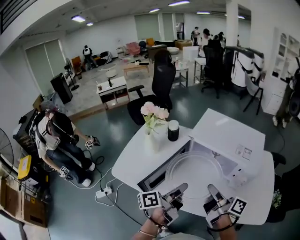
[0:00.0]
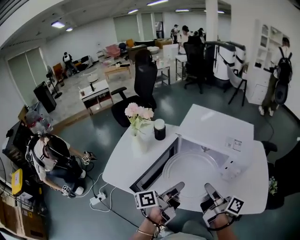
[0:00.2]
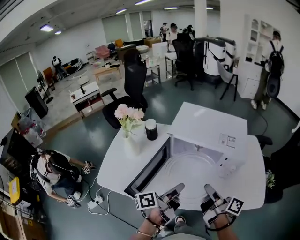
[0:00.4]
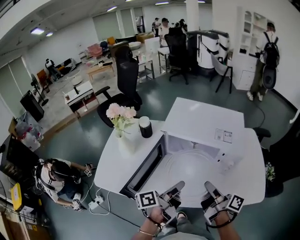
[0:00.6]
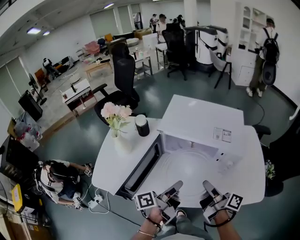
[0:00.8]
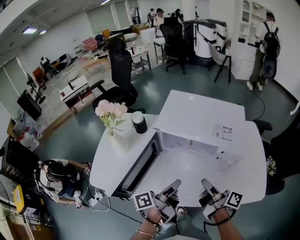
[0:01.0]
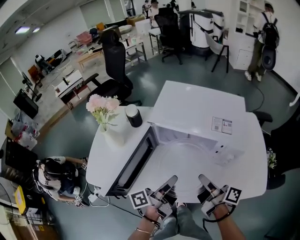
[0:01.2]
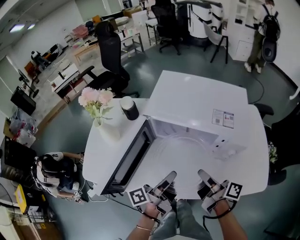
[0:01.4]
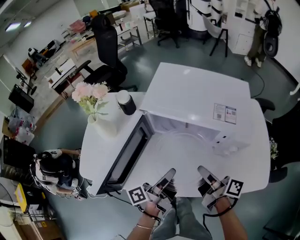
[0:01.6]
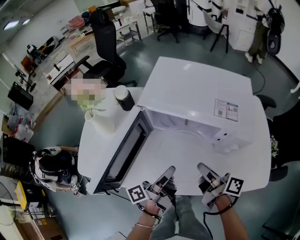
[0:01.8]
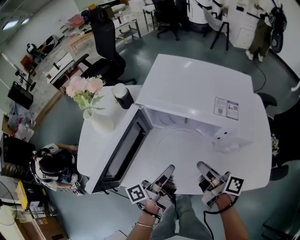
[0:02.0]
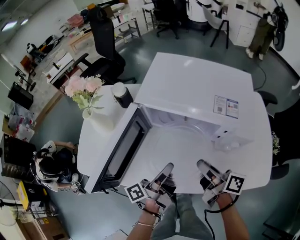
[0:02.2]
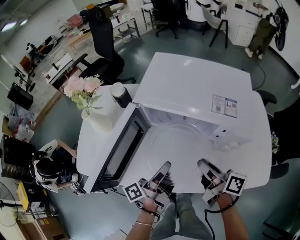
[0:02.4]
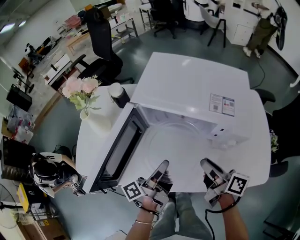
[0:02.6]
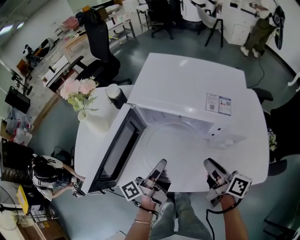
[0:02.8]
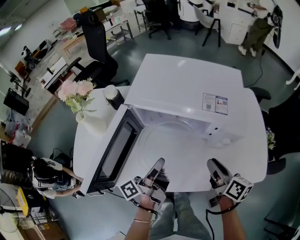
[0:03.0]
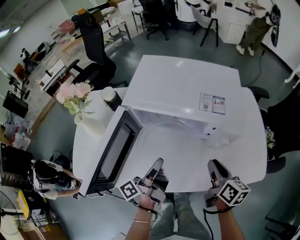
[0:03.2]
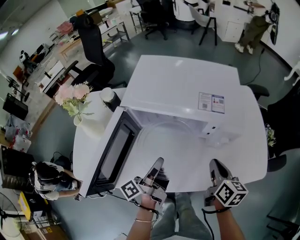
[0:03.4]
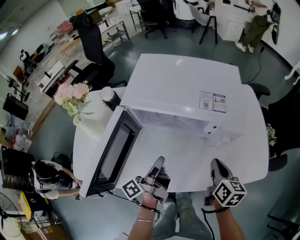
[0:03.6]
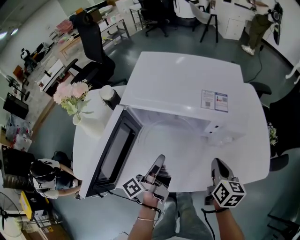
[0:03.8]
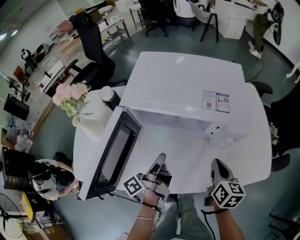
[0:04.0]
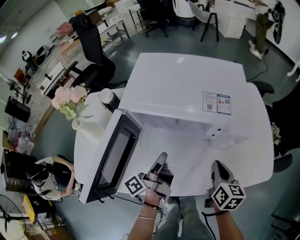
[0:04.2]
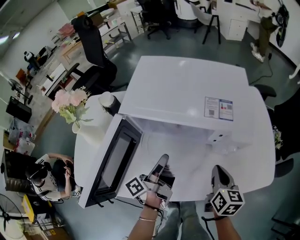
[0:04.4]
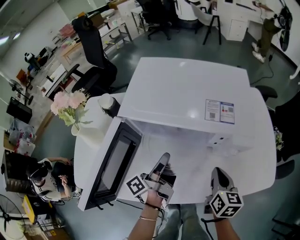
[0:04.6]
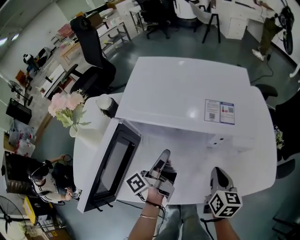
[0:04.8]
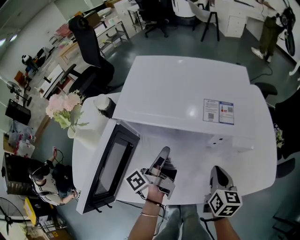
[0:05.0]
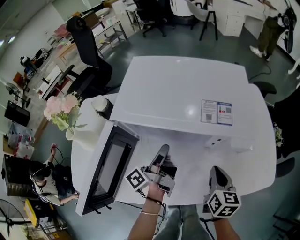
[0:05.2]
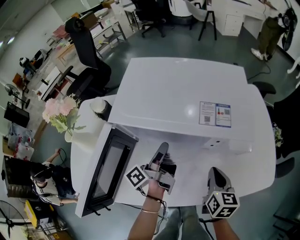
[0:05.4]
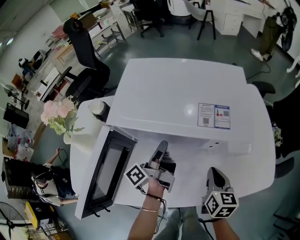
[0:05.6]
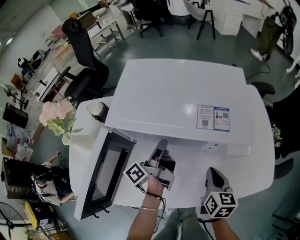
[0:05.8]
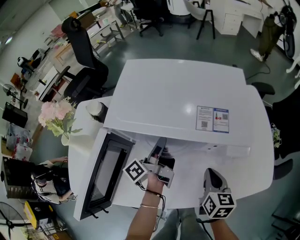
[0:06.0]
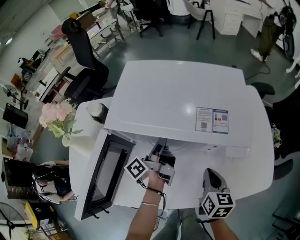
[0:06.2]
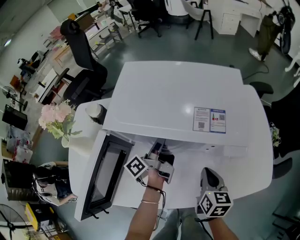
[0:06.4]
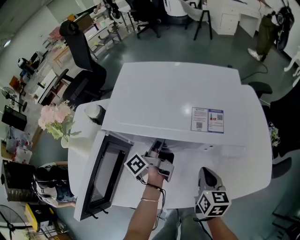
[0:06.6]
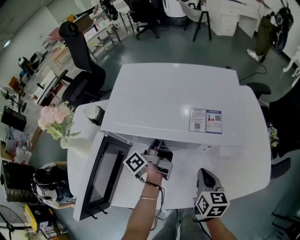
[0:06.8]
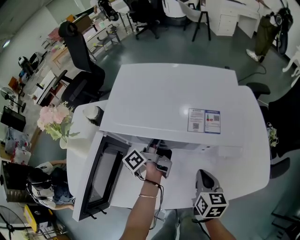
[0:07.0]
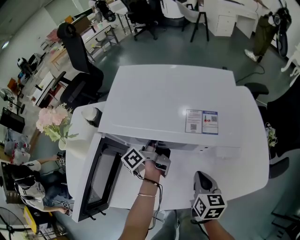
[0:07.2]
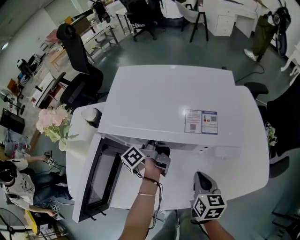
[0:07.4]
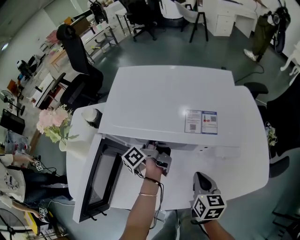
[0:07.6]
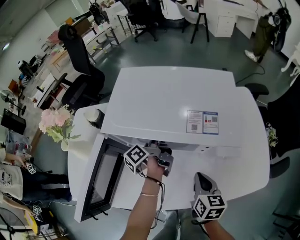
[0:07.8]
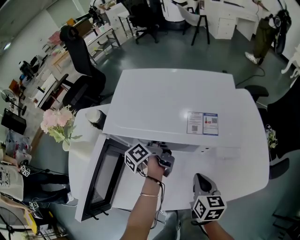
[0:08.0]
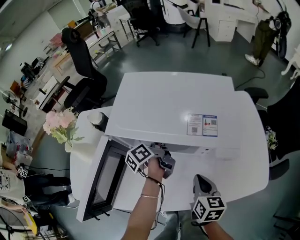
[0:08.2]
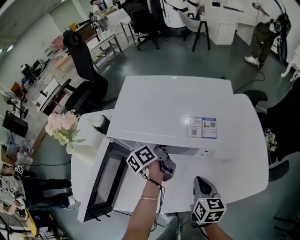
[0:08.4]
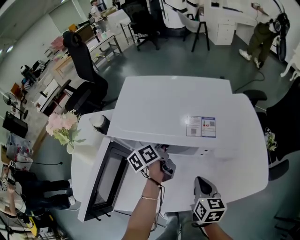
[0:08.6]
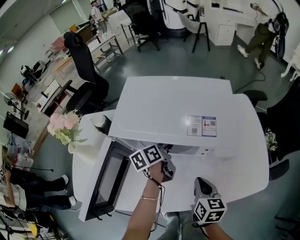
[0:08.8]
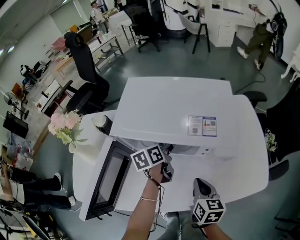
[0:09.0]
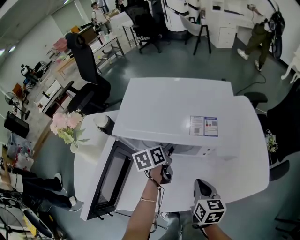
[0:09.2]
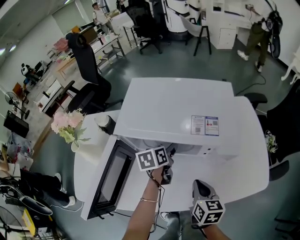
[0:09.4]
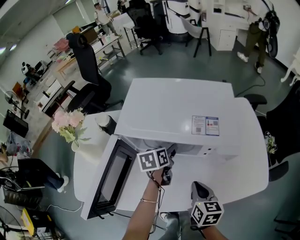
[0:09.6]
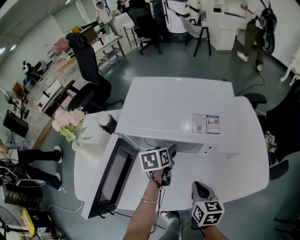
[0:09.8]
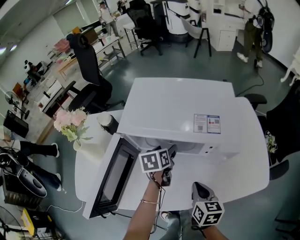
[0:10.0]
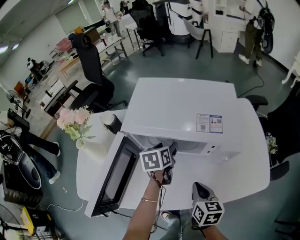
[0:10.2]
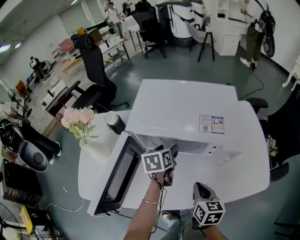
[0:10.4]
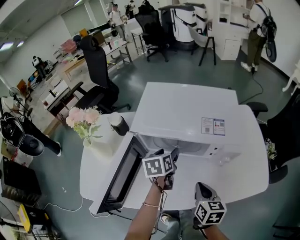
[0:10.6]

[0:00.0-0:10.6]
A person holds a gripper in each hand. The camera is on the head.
0:00.0 to 0:01.6: The right gripper travels downward by about 10 cm.
0:01.6 to 0:03.0: The right gripper ends up approximately 10 cm from where it was, and swivels roughly 30 degrees.
0:03.0 to 0:04.6: The right gripper travels downward by about 5 cm, changes its angle by some 30 degrees, and closes its fingers.

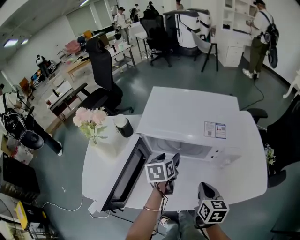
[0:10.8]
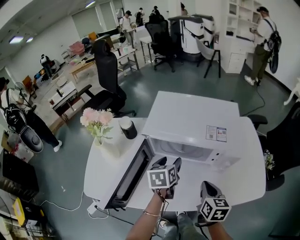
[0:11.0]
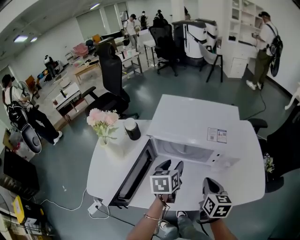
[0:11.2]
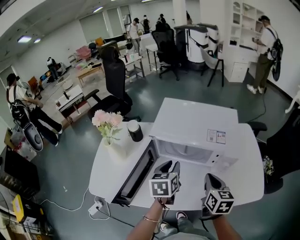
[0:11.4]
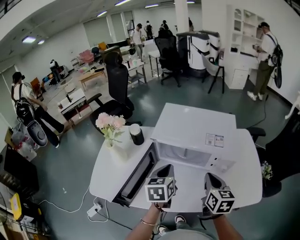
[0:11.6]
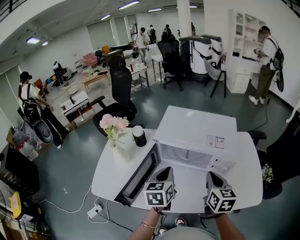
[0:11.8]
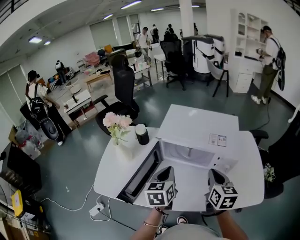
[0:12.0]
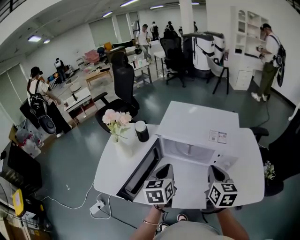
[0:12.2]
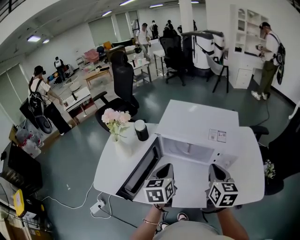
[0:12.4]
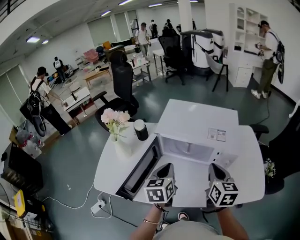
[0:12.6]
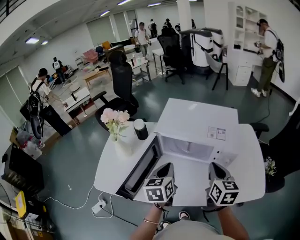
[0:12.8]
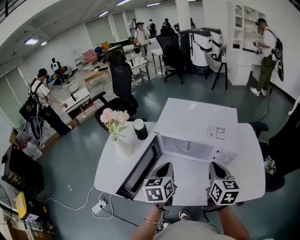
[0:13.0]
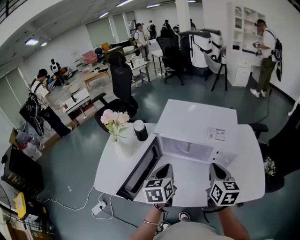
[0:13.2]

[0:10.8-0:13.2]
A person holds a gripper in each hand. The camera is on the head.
0:10.8 to 0:12.0: The right gripper travels upward by approximately 10 cm.

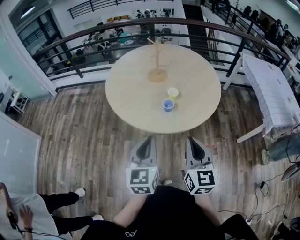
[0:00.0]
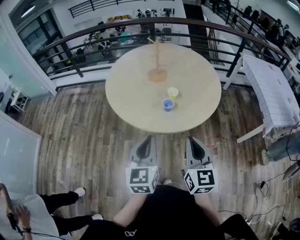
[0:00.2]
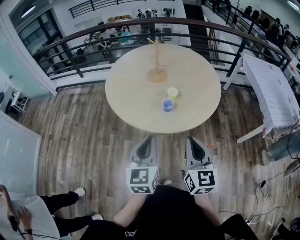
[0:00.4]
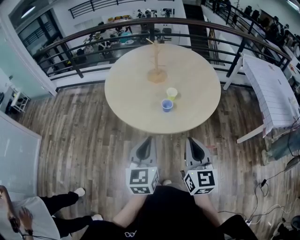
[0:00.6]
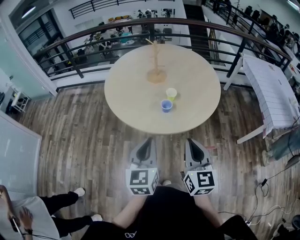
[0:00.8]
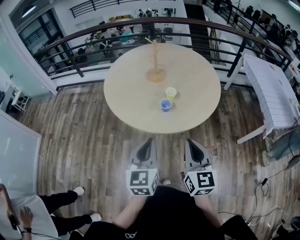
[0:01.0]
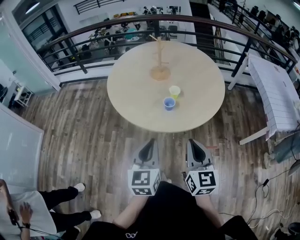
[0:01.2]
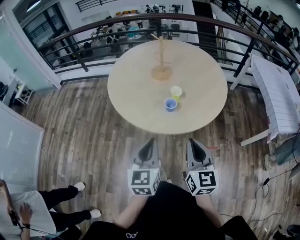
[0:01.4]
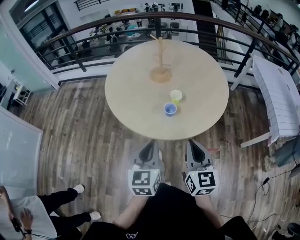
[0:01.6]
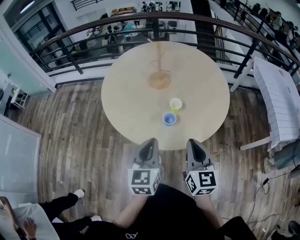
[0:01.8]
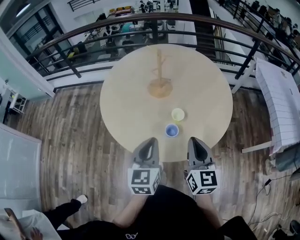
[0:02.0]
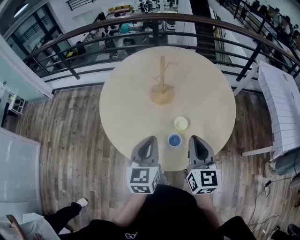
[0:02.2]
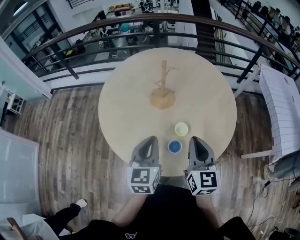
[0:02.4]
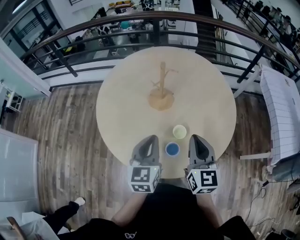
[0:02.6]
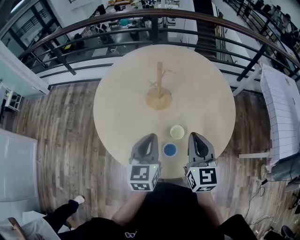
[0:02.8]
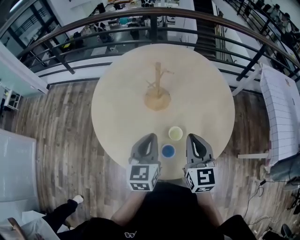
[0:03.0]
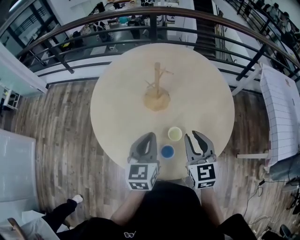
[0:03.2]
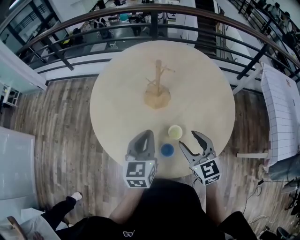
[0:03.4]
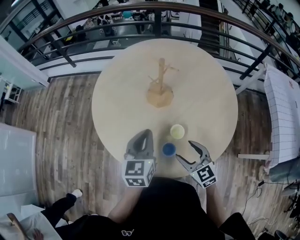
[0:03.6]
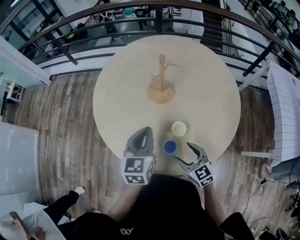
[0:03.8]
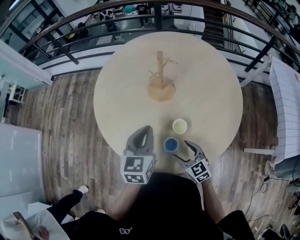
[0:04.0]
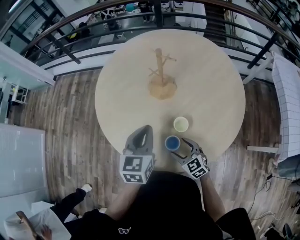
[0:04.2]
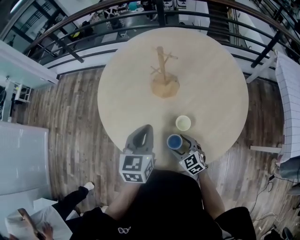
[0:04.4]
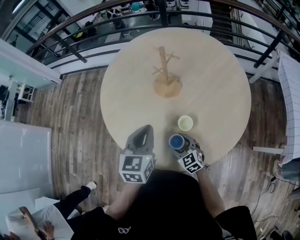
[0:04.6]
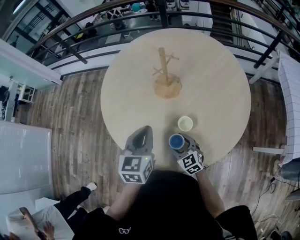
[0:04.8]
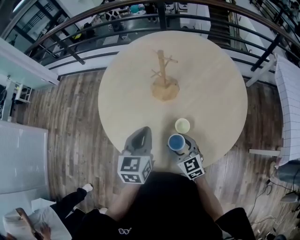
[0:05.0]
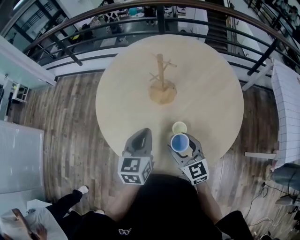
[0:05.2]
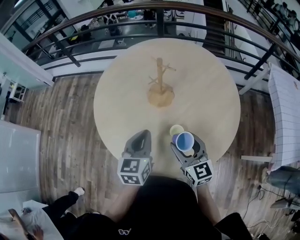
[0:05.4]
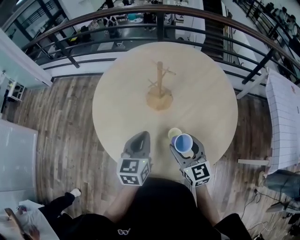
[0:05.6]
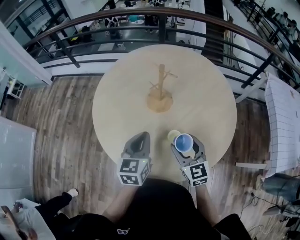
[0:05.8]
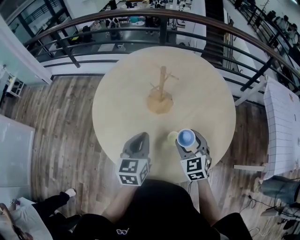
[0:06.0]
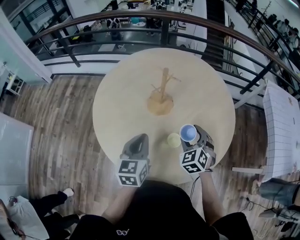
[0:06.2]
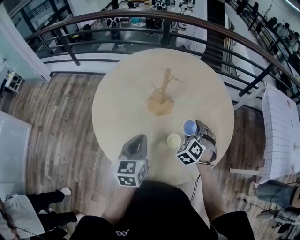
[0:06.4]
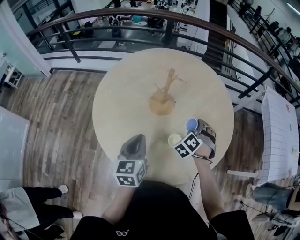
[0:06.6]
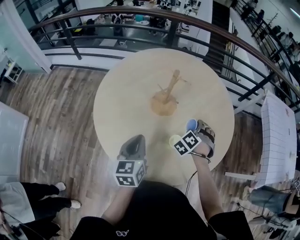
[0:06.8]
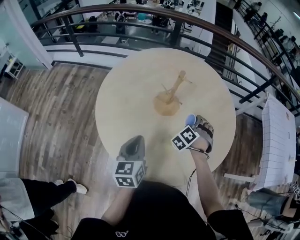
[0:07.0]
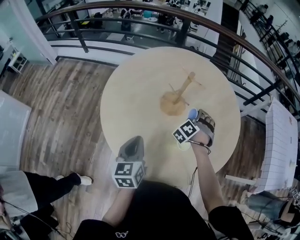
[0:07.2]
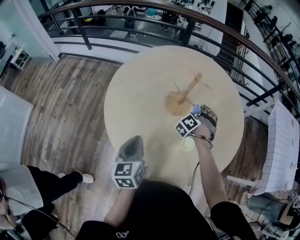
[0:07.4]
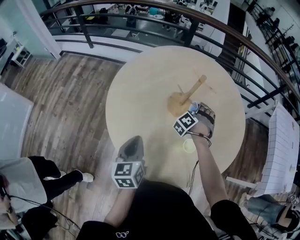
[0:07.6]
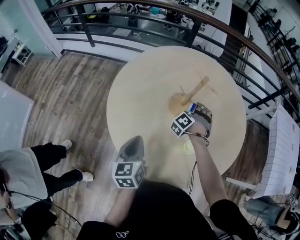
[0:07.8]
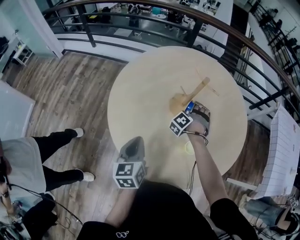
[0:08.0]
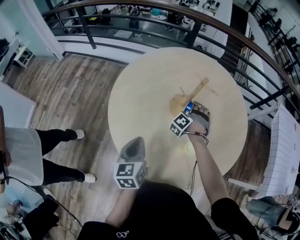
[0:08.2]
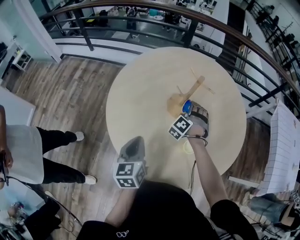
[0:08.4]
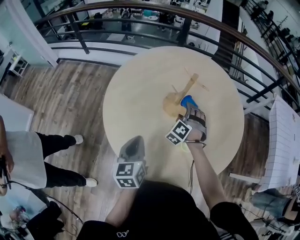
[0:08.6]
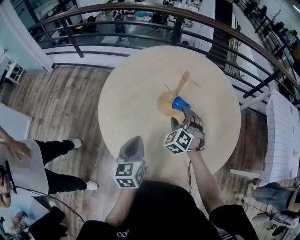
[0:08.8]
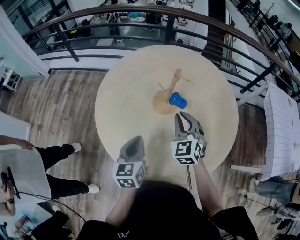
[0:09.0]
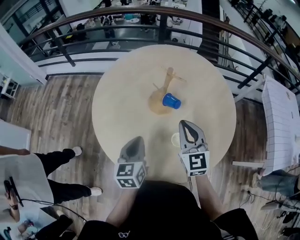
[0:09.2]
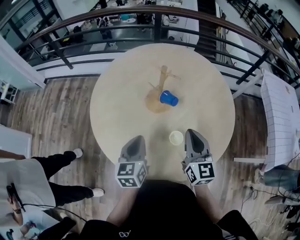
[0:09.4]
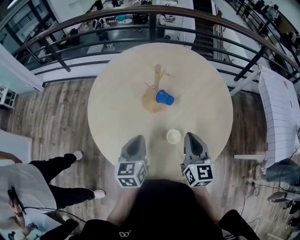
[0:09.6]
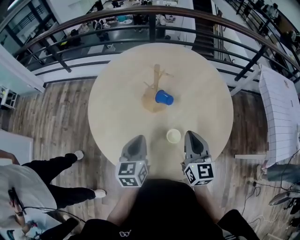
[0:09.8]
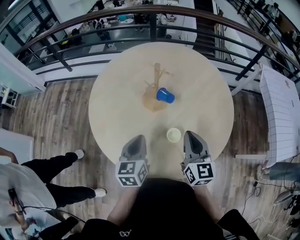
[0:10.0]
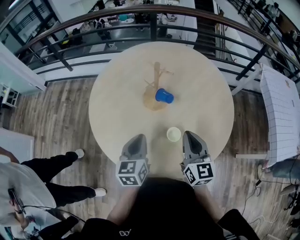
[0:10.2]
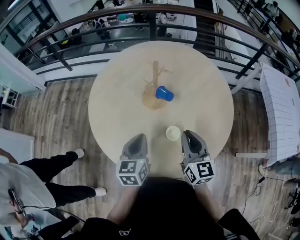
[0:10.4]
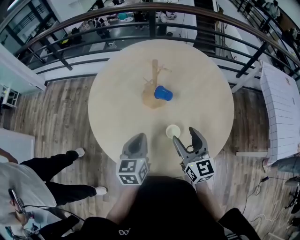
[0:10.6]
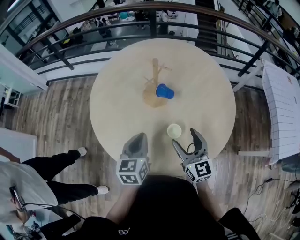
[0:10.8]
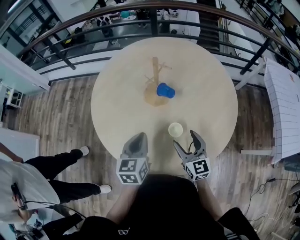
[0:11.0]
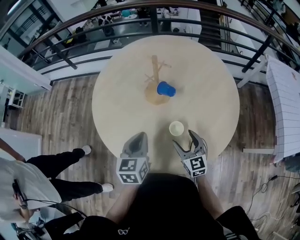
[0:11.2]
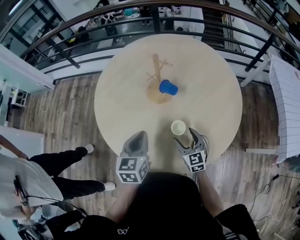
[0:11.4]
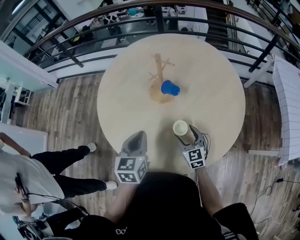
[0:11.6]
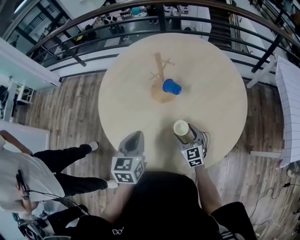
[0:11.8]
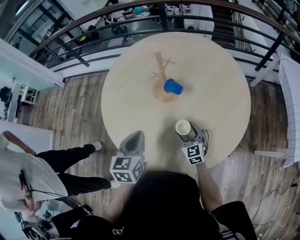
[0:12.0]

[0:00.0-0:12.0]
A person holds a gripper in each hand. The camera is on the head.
0:00.0 to 0:01.6: Both grippers move forward, approximately 5 cm.
0:01.6 to 0:03.0: The two grippers go approximately 30 cm forward.
0:03.0 to 0:04.4: The right gripper moves downward, some 25 cm, changes its angle by approximately 40 degrees, and opens its fingers.
0:04.4 to 0:06.0: The right gripper goes roughly 20 cm upward, to the right and forward, and swivels approximately 20 degrees.
0:06.0 to 0:07.6: The left gripper goes approximately 15 cm to the left, while the right gripper shifts roughly 20 cm forward, to the left and downward, and changes its angle by approximately 70 degrees.
0:07.6 to 0:09.0: The left gripper ends up some 5 cm from where it was; the right gripper heads upward and backward, covering some 15 cm, changes its angle by roughly 60 degrees, and closes its fingers.
0:09.0 to 0:10.4: The right gripper shifts approximately 15 cm backward and to the right, and swivels about 40 degrees. The left gripper is displaced to the right by roughly 10 cm.
0:10.4 to 0:12.0: The right gripper is displaced downward by roughly 20 cm, turns by some 20 degrees, and opens its fingers.
